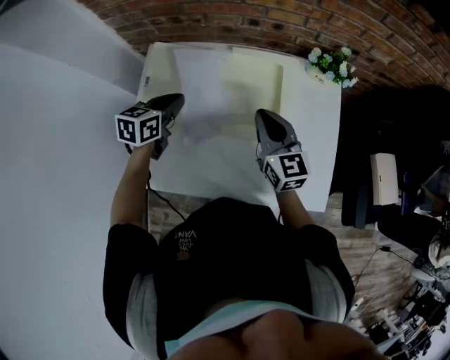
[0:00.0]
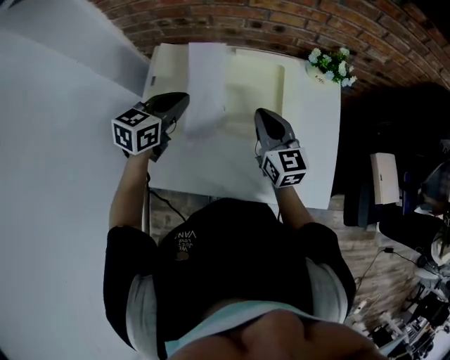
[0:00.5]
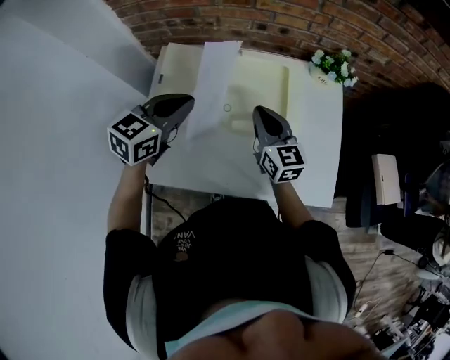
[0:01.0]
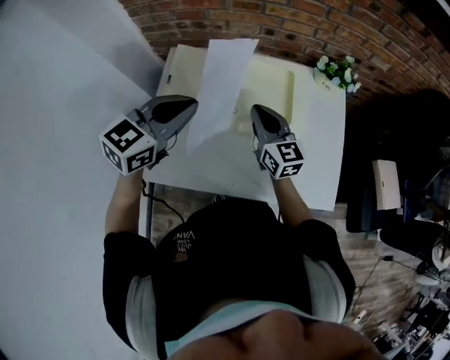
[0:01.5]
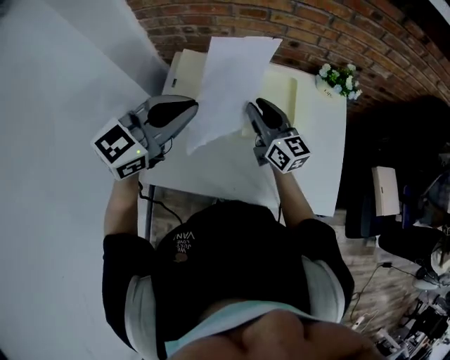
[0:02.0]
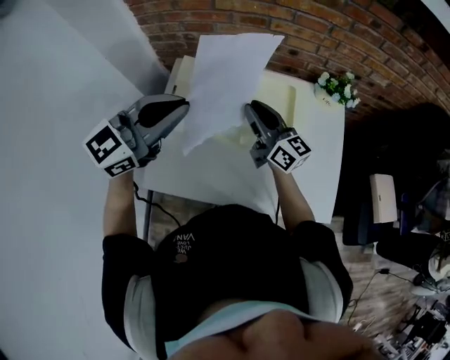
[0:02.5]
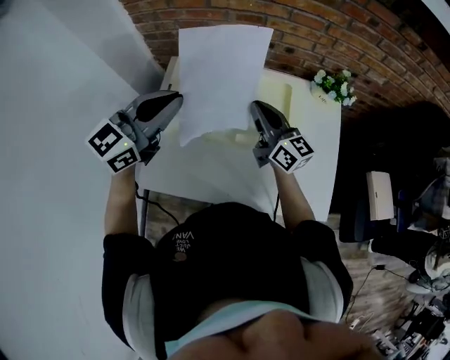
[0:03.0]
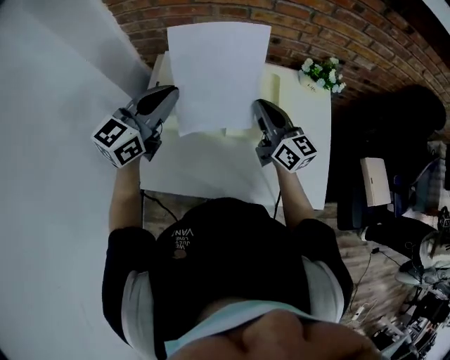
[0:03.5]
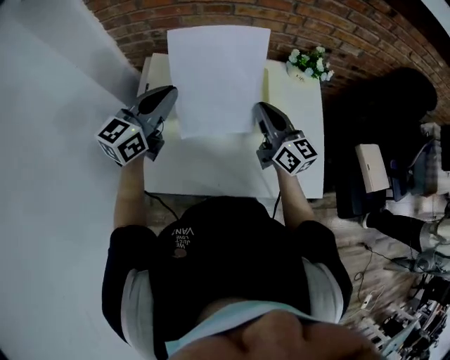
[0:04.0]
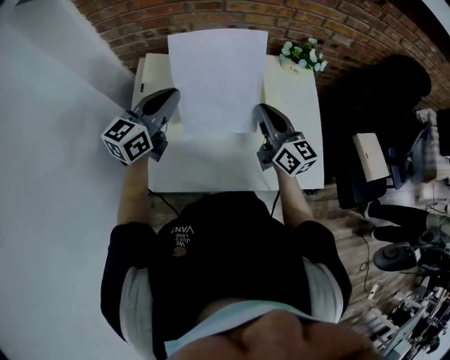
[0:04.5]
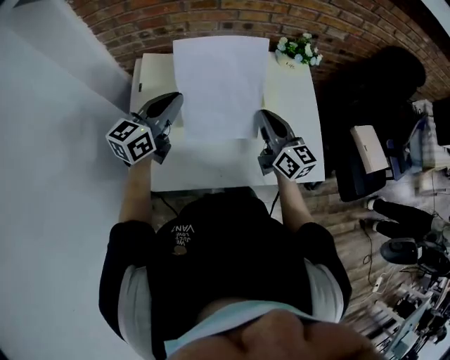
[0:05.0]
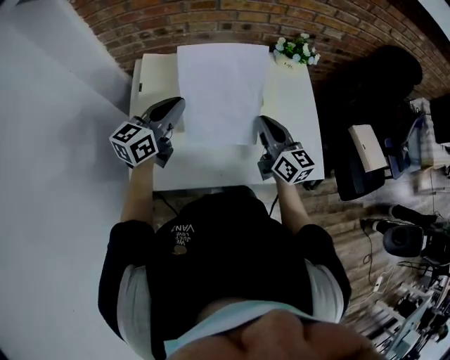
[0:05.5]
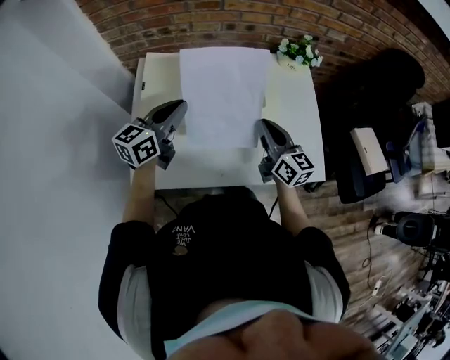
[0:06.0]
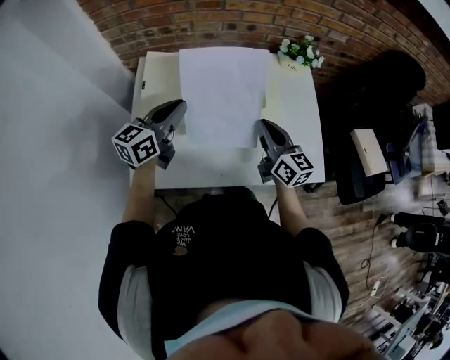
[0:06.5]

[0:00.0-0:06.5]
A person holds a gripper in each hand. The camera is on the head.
0:00.0 to 0:02.0: The left gripper moves upward and backward, some 25 cm, and swivels approximately 40 degrees; the right gripper shifts roughly 10 cm to the left, swivels roughly 20 degrees, and opens its fingers.
0:02.0 to 0:04.5: The left gripper is displaced downward and forward by about 10 cm, while the right gripper shifts roughly 10 cm to the right, and closes up.
0:04.5 to 0:06.5: The right gripper shifts some 5 cm backward; the left gripper ends up roughly 5 cm from where it was.

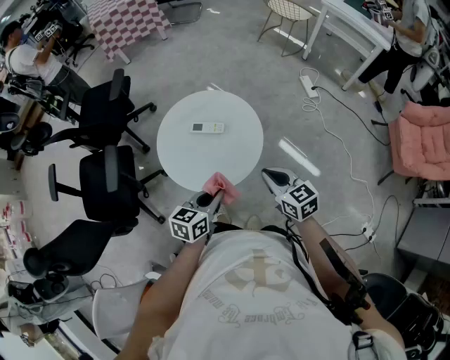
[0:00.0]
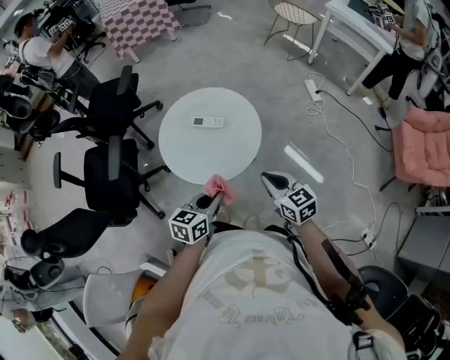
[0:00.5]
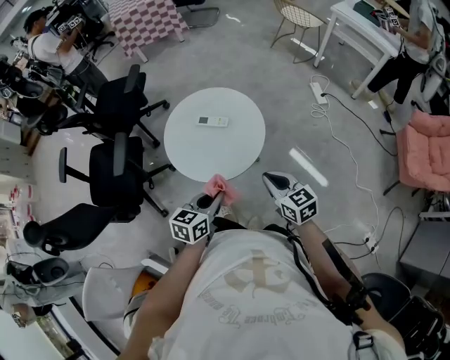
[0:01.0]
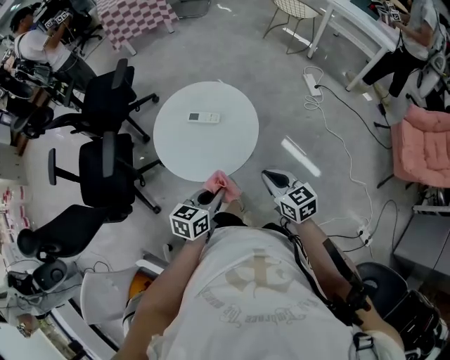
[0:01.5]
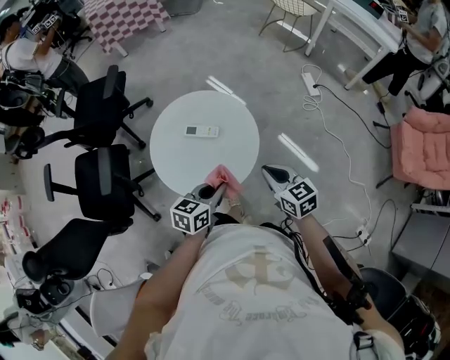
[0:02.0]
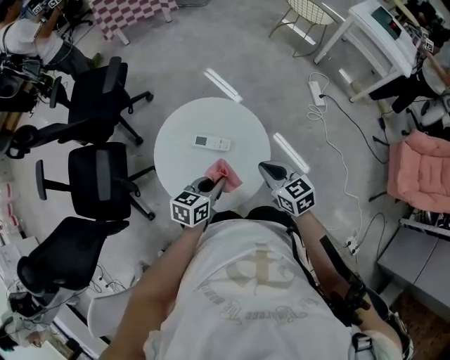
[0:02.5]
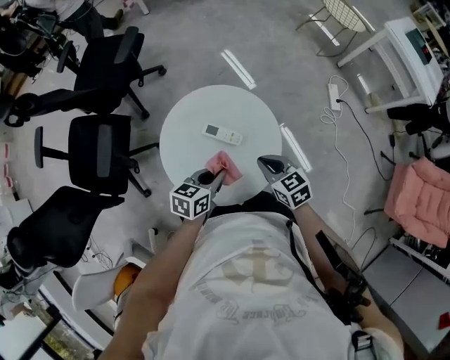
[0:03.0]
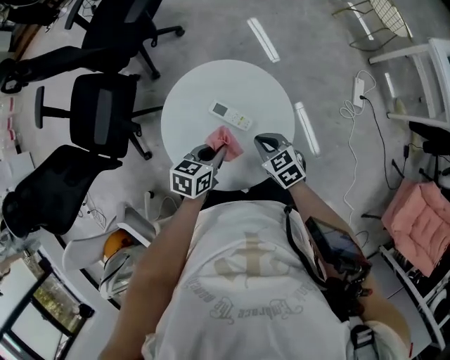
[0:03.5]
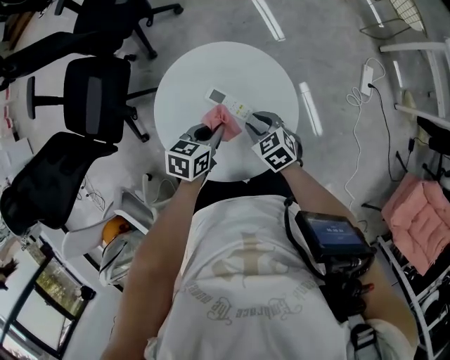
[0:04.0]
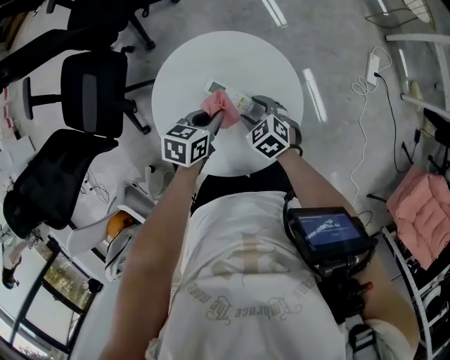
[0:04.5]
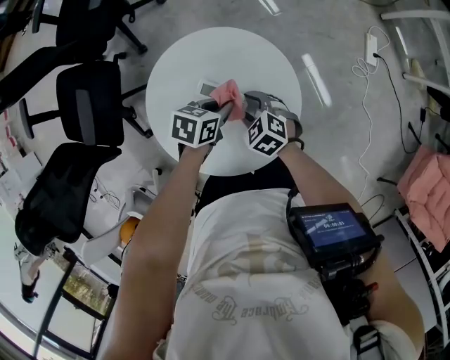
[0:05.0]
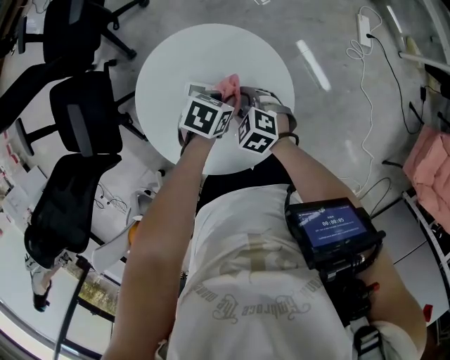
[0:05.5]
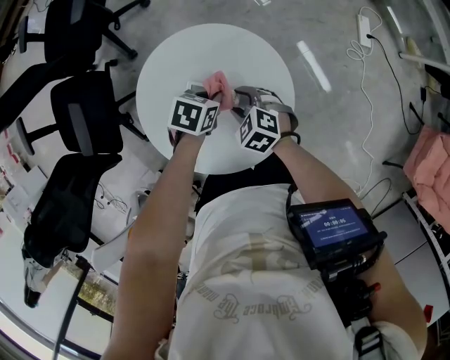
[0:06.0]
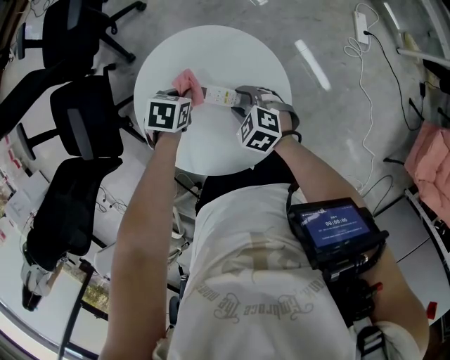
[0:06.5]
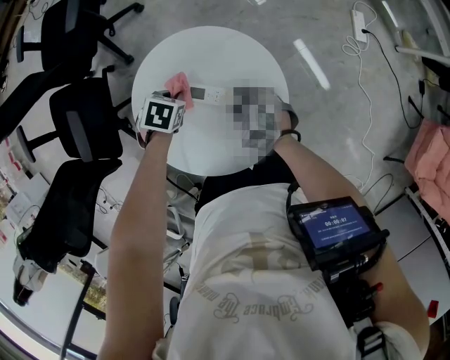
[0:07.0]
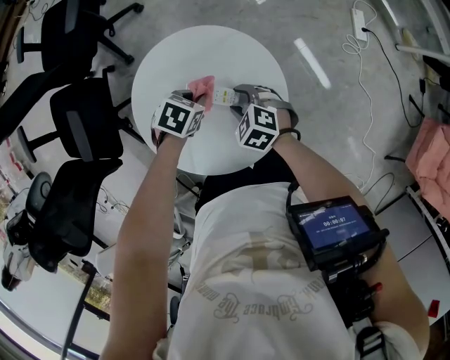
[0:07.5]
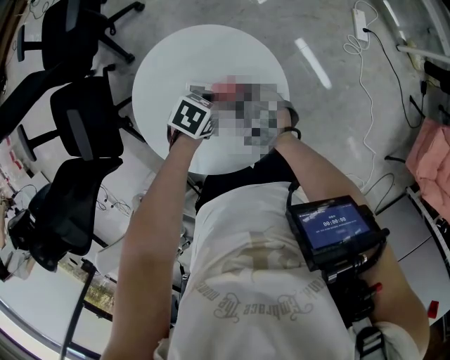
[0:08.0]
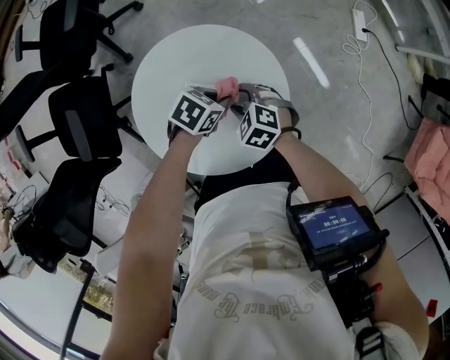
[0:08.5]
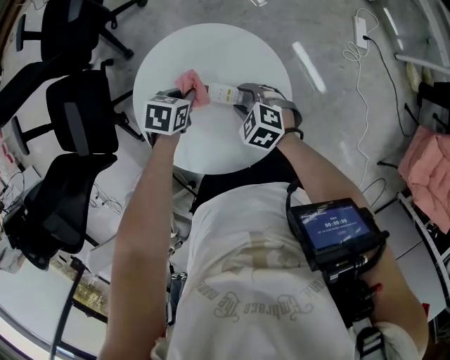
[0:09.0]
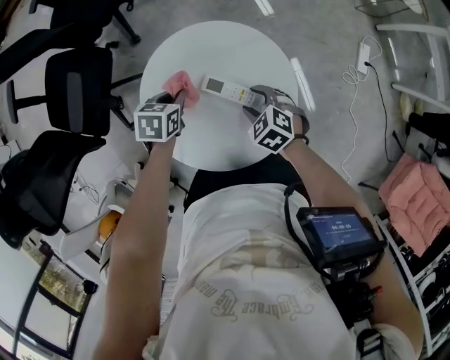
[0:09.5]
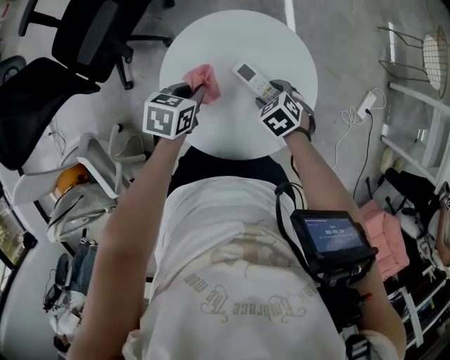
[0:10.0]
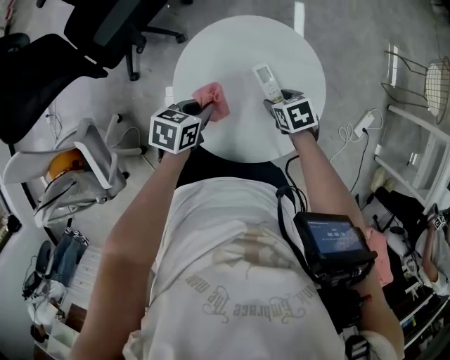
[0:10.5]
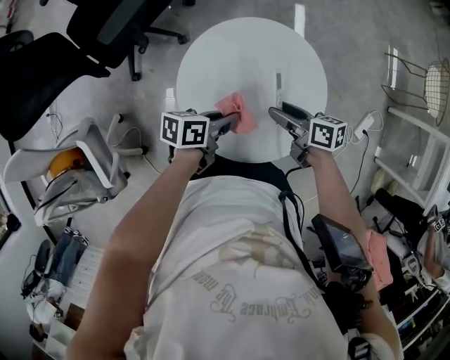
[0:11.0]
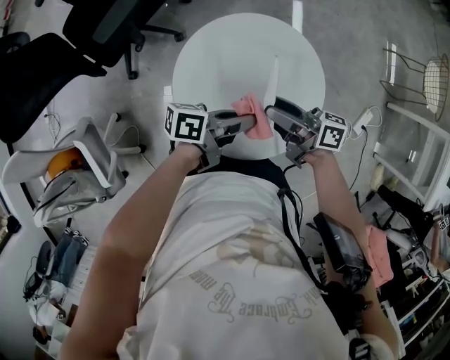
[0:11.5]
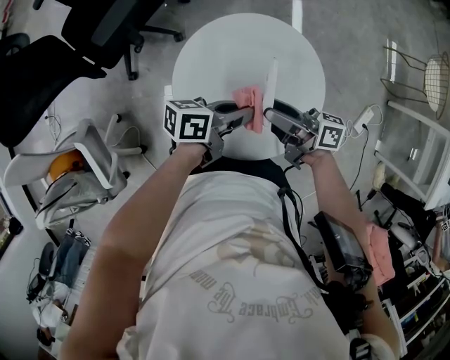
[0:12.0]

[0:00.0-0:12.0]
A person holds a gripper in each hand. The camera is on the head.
0:00.0 to 0:02.0: The left gripper moves forward, some 5 cm. The right gripper ends up some 5 cm from where it was.
0:02.0 to 0:04.0: The left gripper changes place by about 20 cm, and changes its angle by some 30 degrees, while the right gripper shifts by roughly 25 cm, rotates approximately 50 degrees, and opens its fingers.
0:04.0 to 0:06.0: The left gripper ends up some 5 cm from where it was, and turns by roughly 30 degrees.
0:08.0 to 0:10.0: The left gripper changes place by about 15 cm, and turns by about 50 degrees.
0:10.0 to 0:12.0: The left gripper changes place by approximately 10 cm, and tips its fingers upward by some 40 degrees, while the right gripper shifts approximately 15 cm upward, and angles its fingers upward, by about 80 degrees.

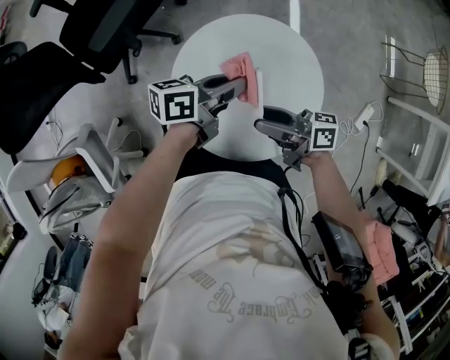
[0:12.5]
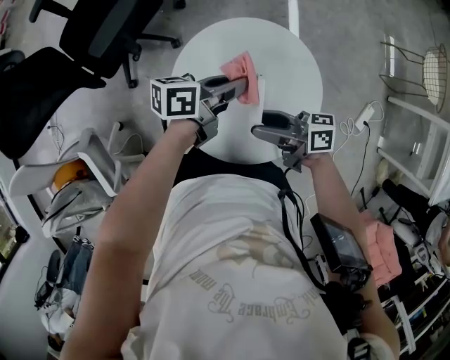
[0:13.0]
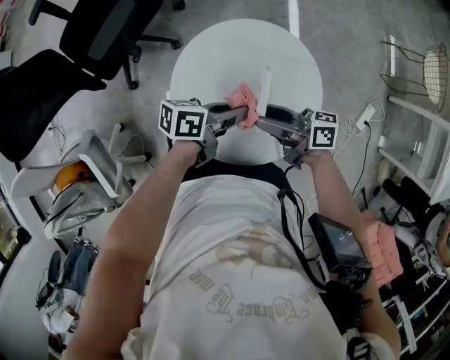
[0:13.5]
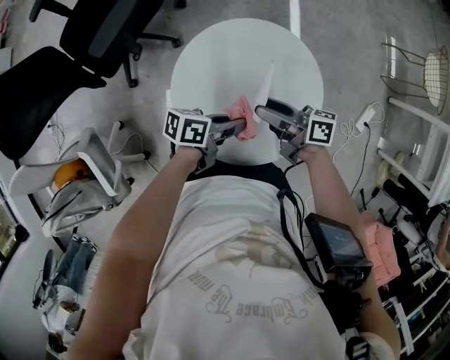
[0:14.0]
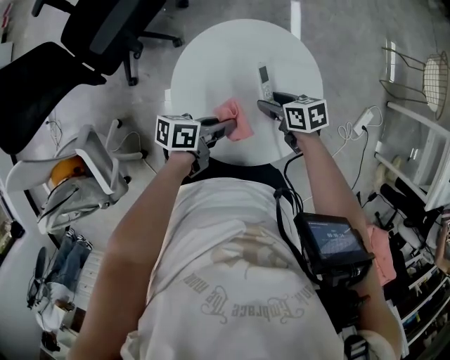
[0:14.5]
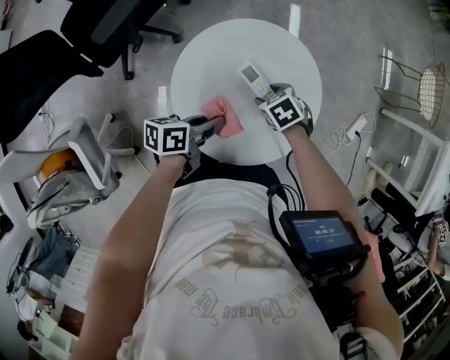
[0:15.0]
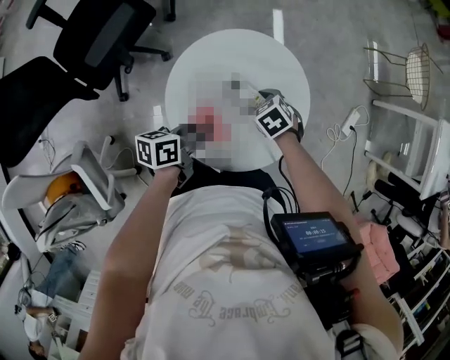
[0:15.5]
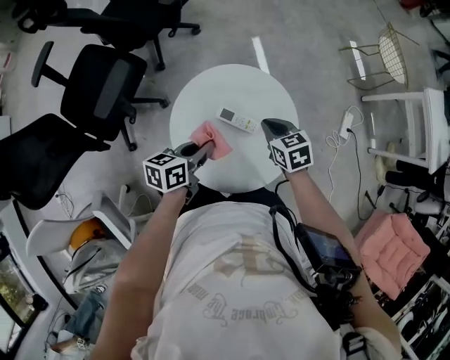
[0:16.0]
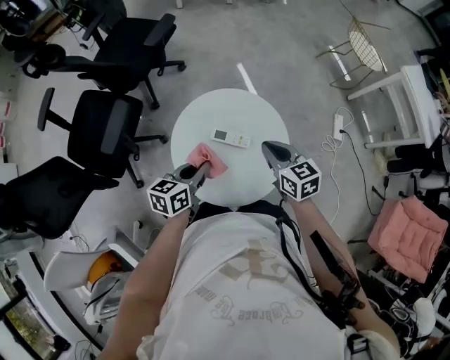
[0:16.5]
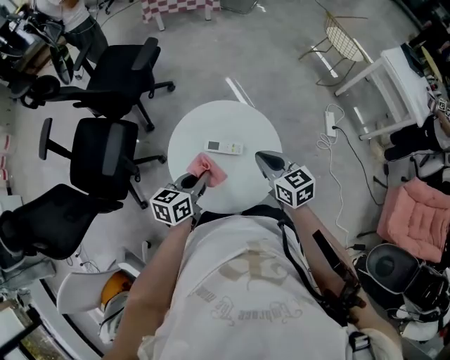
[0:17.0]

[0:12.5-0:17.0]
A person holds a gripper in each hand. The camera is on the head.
0:12.5 to 0:14.5: The right gripper is displaced downward by some 15 cm, and angles its fingers downward, by approximately 50 degrees. Meanwhile the left gripper ends up some 15 cm from where it was.
0:14.5 to 0:17.0: The right gripper heads upward, covering roughly 20 cm, rotates about 50 degrees, and closes up, while the left gripper is displaced upward by about 10 cm, and turns by approximately 40 degrees.

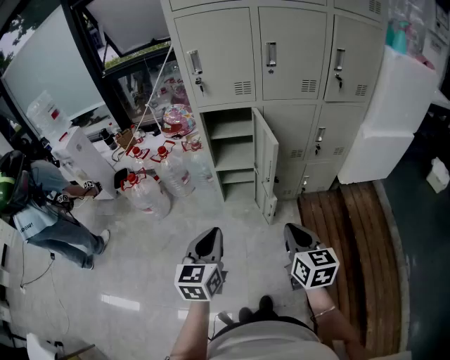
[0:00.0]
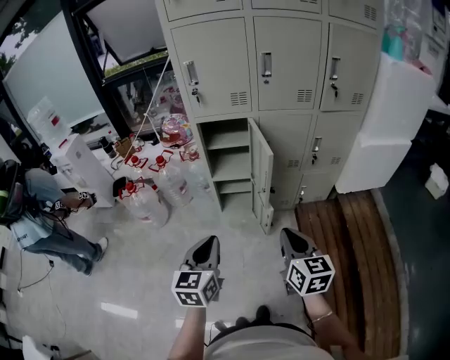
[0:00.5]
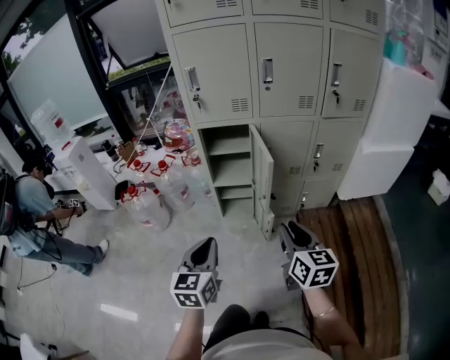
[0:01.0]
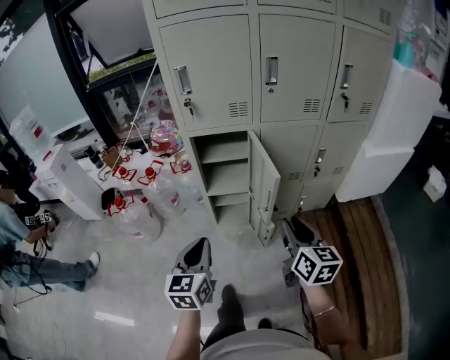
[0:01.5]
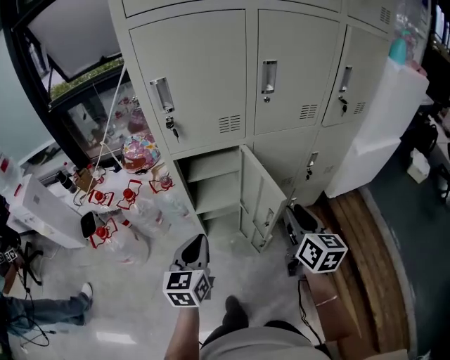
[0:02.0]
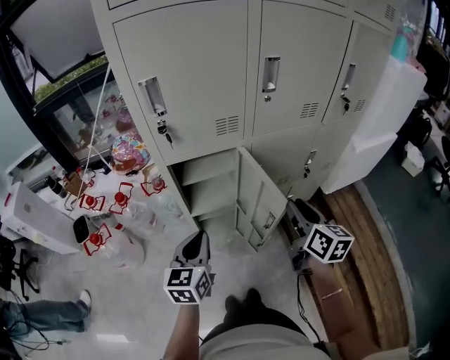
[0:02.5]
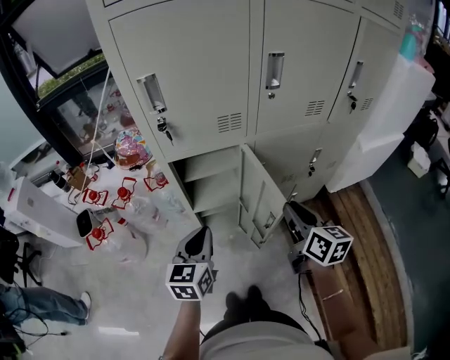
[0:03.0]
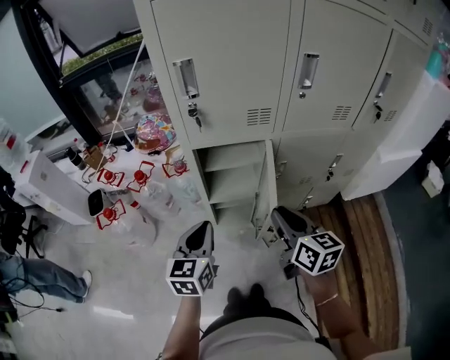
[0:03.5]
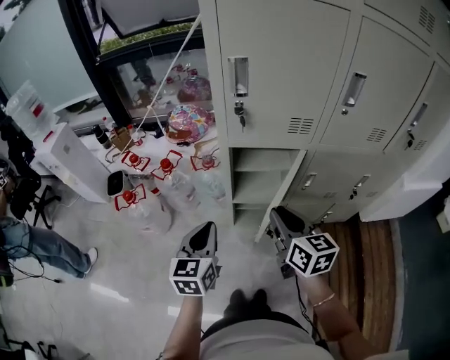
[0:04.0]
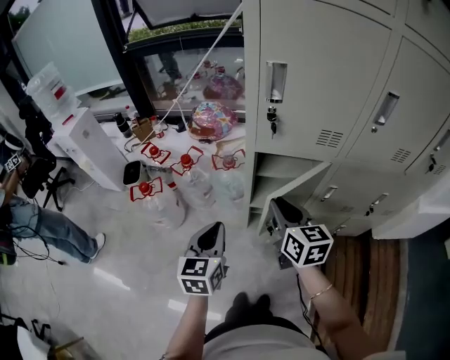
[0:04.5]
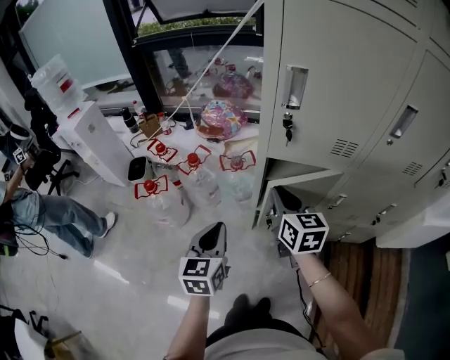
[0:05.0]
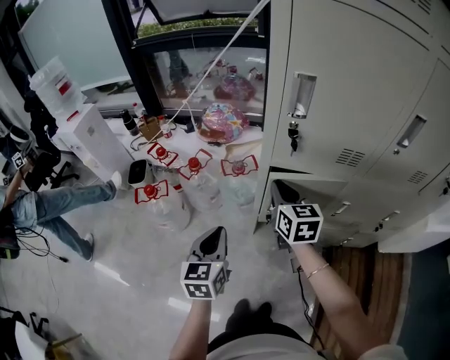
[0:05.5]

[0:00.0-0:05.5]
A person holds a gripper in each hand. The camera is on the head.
0:00.0 to 0:02.0: Both grippers move forward, some 30 cm. The right gripper rotates about 20 degrees, and opens up.
0:02.0 to 0:03.5: The right gripper shifts some 10 cm to the left. The left gripper heads forward, covering approximately 5 cm.
0:03.5 to 0:05.5: The left gripper shifts roughly 15 cm to the left and forward, while the right gripper travels forward and to the left by roughly 30 cm.
